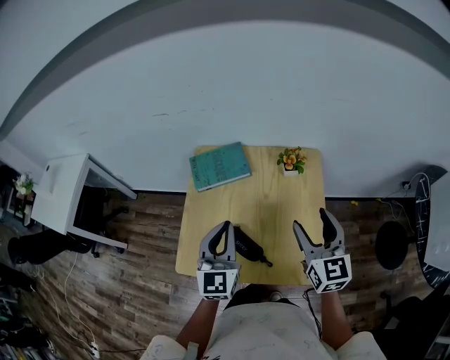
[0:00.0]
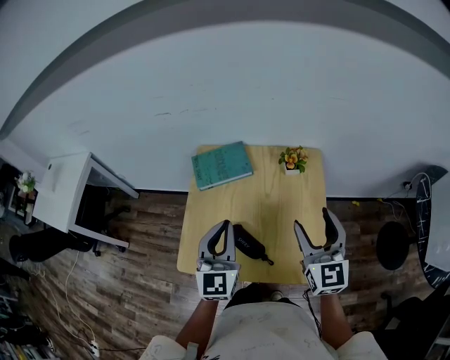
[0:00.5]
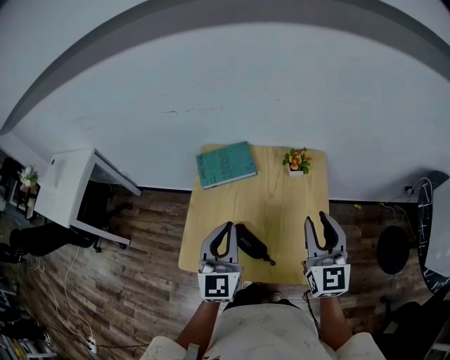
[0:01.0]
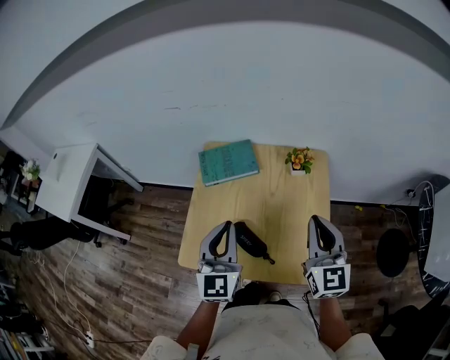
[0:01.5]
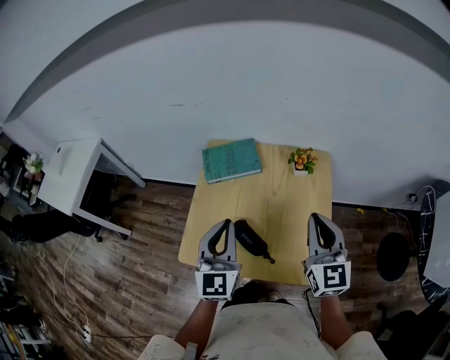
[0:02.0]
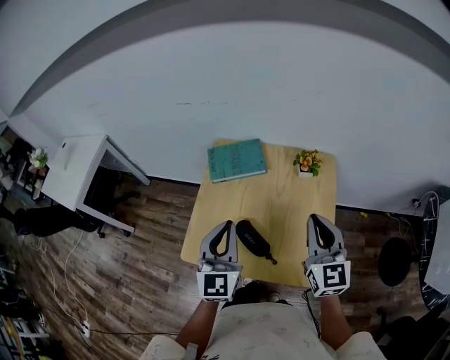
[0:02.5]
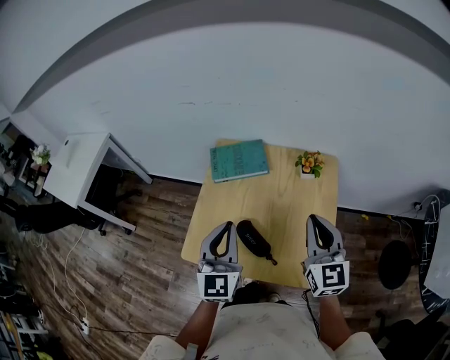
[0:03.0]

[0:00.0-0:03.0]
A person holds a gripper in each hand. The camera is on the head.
0:00.0 to 0:01.5: The right gripper closes its fingers.
0:01.5 to 0:03.0: The grippers move only a little.

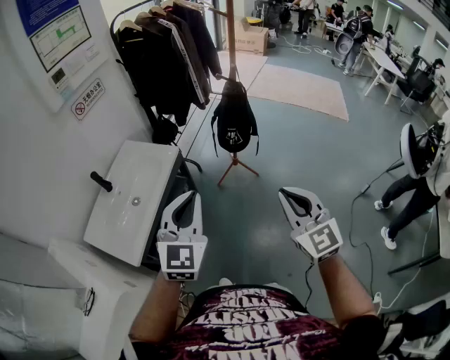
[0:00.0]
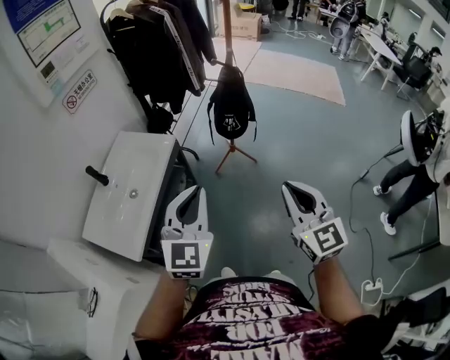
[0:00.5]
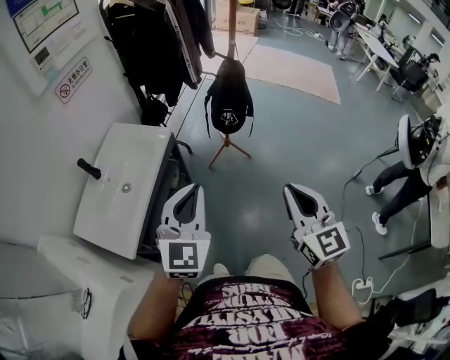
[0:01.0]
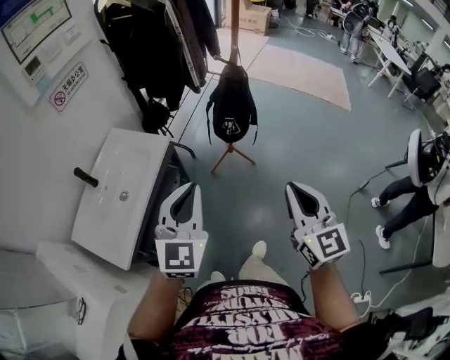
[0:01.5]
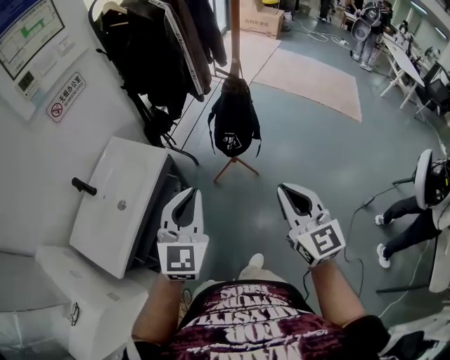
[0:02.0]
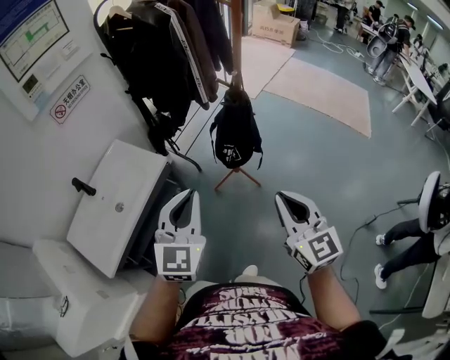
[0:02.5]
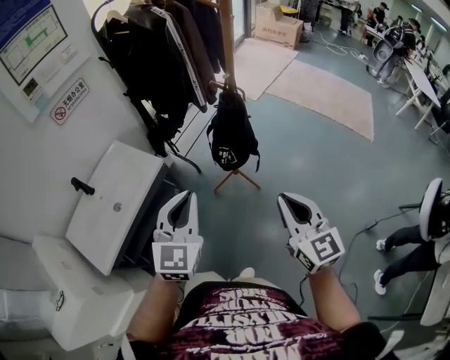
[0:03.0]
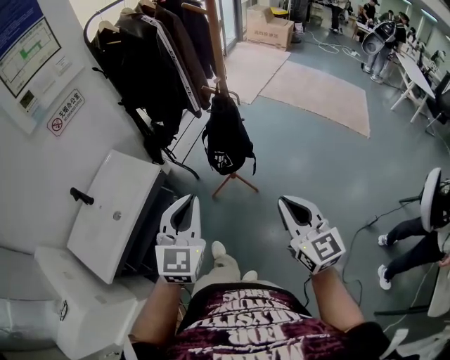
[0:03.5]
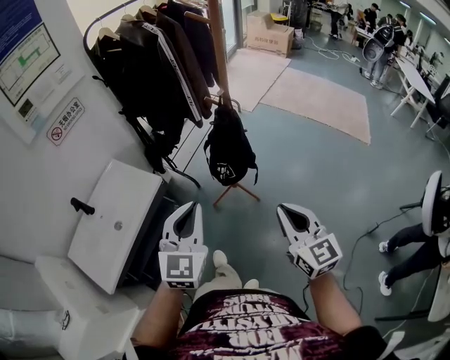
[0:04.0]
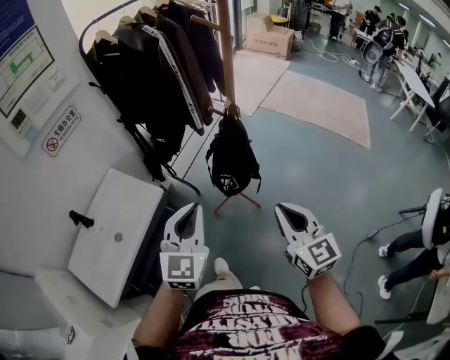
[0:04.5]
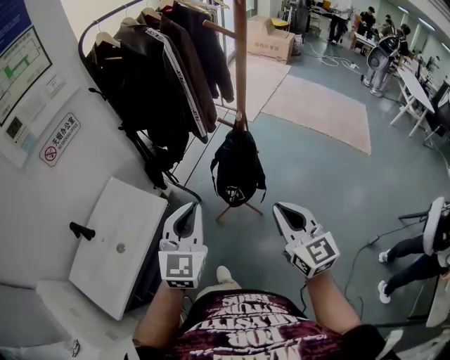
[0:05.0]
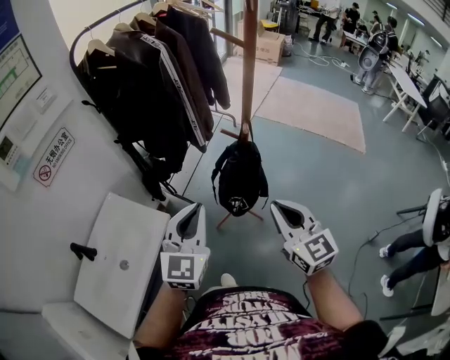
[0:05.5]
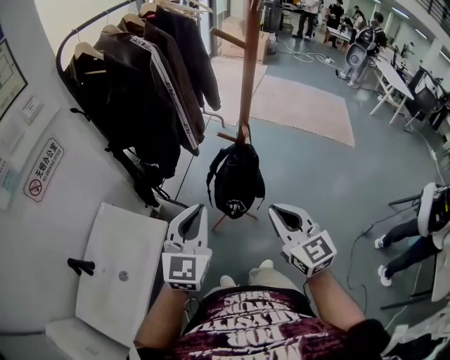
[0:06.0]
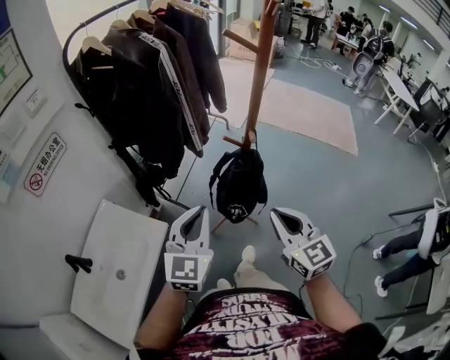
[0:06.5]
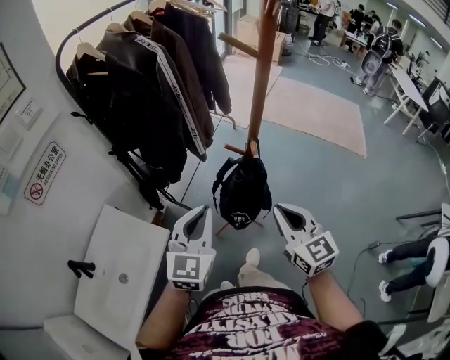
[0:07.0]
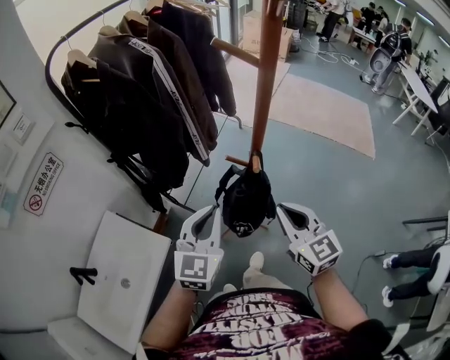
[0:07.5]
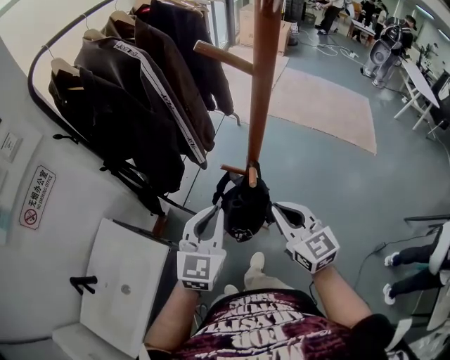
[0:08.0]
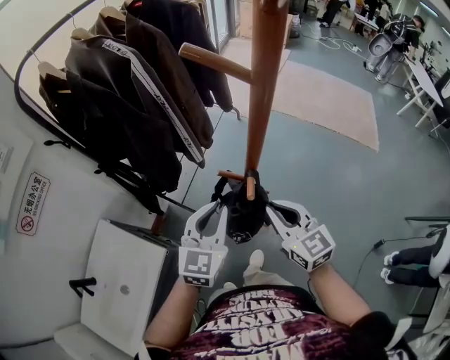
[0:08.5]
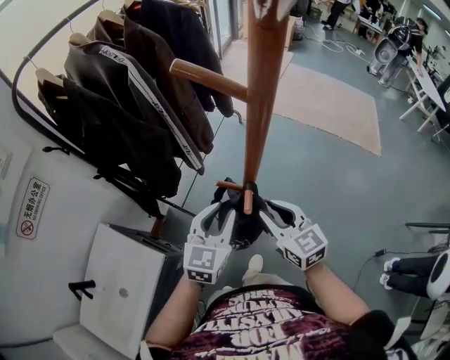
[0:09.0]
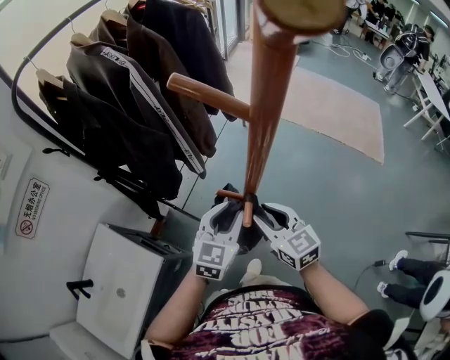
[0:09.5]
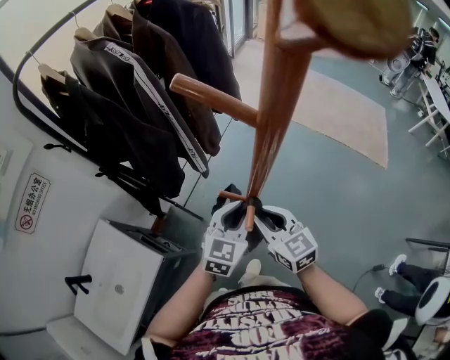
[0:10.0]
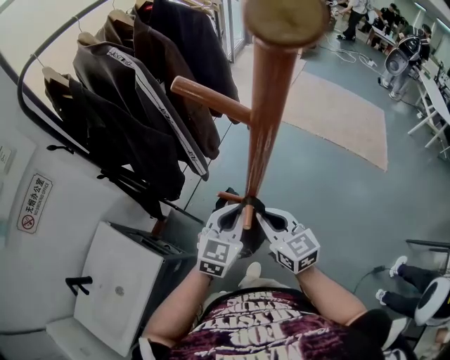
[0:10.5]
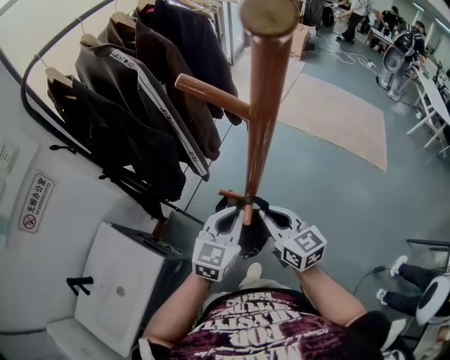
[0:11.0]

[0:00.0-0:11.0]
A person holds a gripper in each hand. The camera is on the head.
0:00.0 to 0:02.0: The right gripper heads forward, covering roughly 20 cm, while the left gripper shifts some 20 cm forward and to the right.
0:02.0 to 0:03.5: The grippers both shift to the right by some 10 cm.
0:03.5 to 0:05.5: The left gripper is displaced forward by roughly 20 cm. Meanwhile the right gripper heads forward and to the left, covering roughly 25 cm.
0:05.5 to 0:07.5: The two grippers go some 15 cm forward.
0:07.5 to 0:09.0: The left gripper travels forward, to the right and downward by about 15 cm, and opens up. The right gripper heads forward and downward, covering roughly 15 cm, and opens.
0:09.0 to 0:11.0: The right gripper closes up. The left gripper closes its fingers.

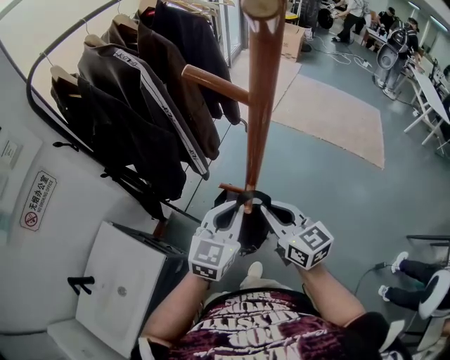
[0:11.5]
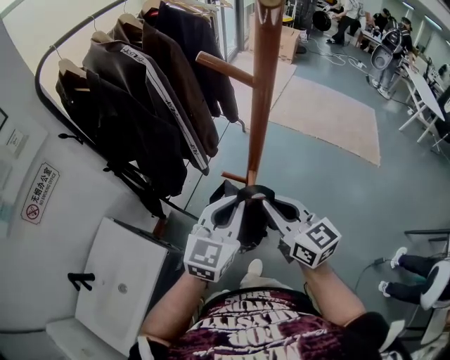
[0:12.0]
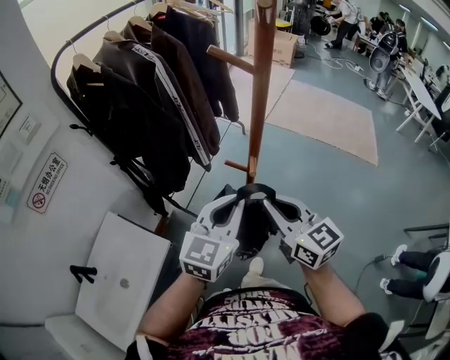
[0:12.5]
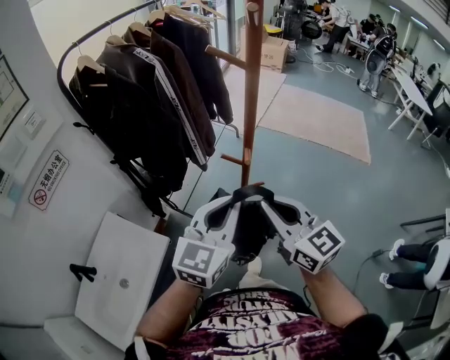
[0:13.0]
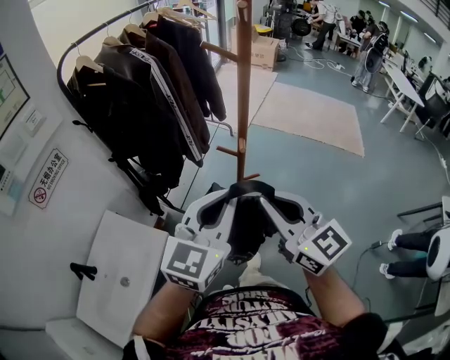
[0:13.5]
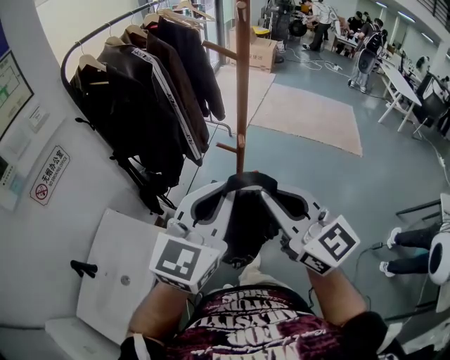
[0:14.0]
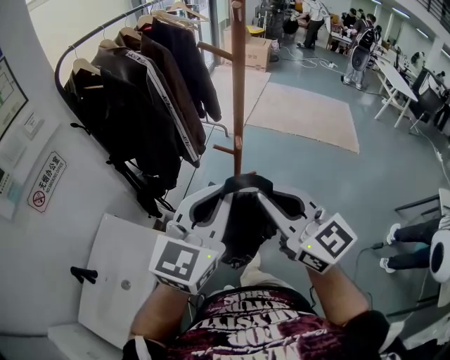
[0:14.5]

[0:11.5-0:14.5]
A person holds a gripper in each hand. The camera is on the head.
0:11.5 to 0:13.0: The two grippers go approximately 20 cm backward and upward.
0:13.0 to 0:14.5: Both grippers move upward and backward, approximately 10 cm.

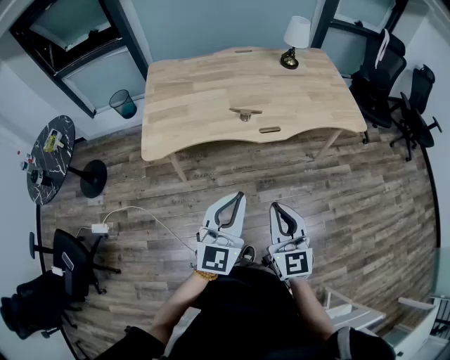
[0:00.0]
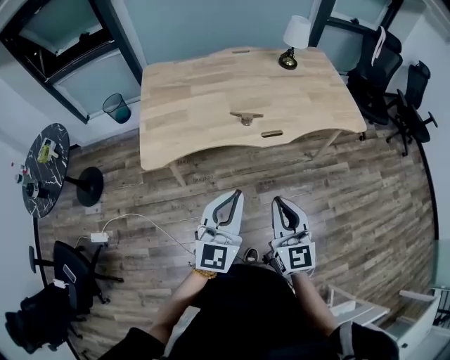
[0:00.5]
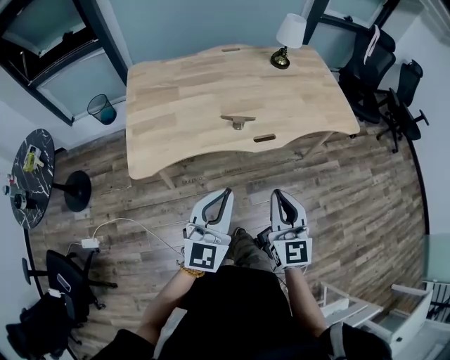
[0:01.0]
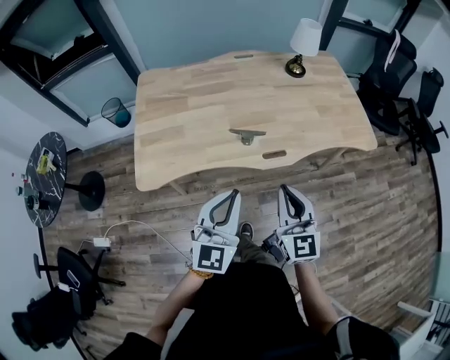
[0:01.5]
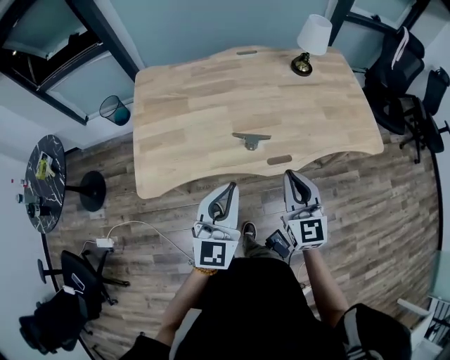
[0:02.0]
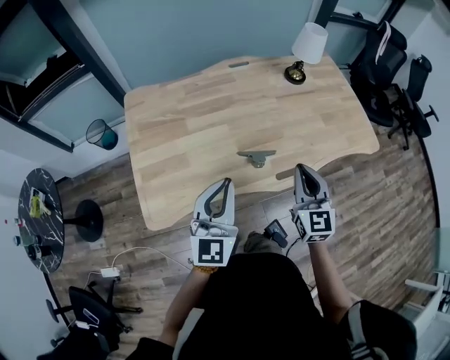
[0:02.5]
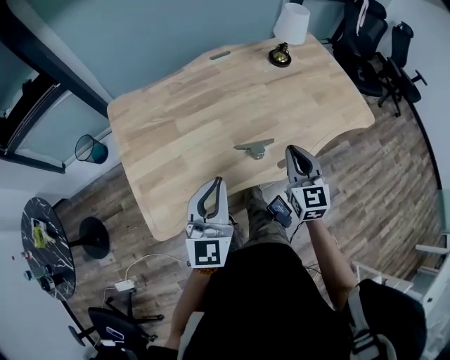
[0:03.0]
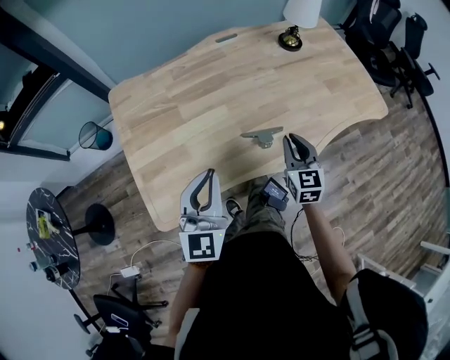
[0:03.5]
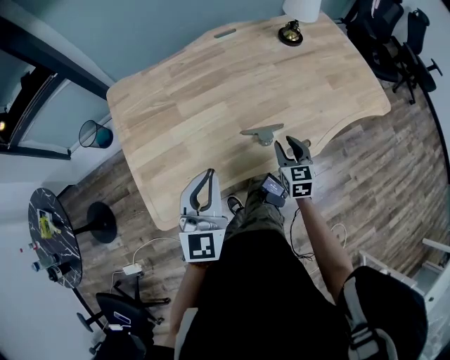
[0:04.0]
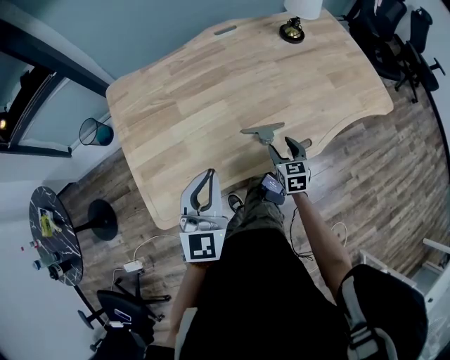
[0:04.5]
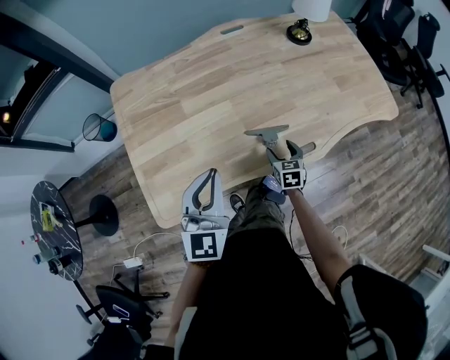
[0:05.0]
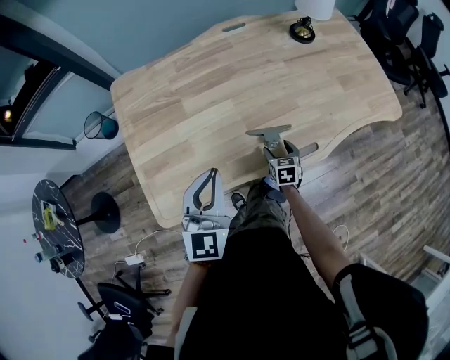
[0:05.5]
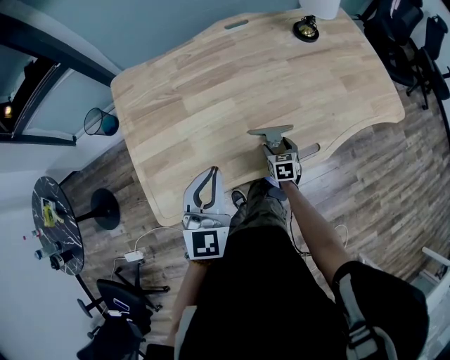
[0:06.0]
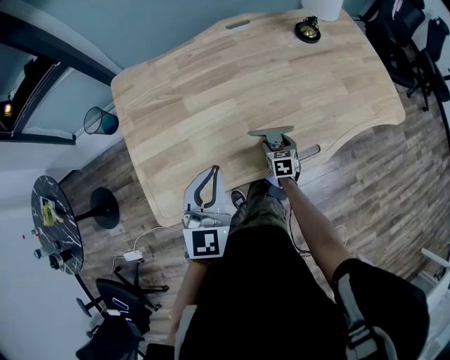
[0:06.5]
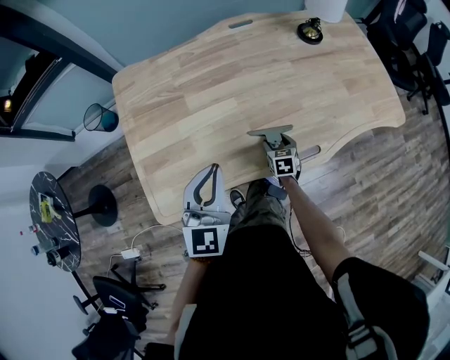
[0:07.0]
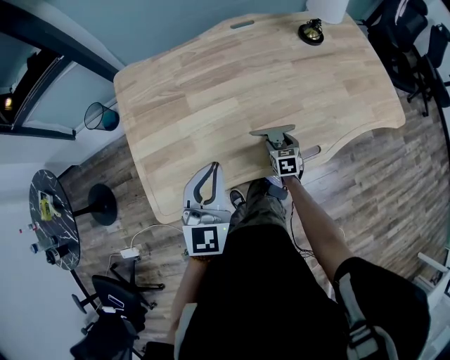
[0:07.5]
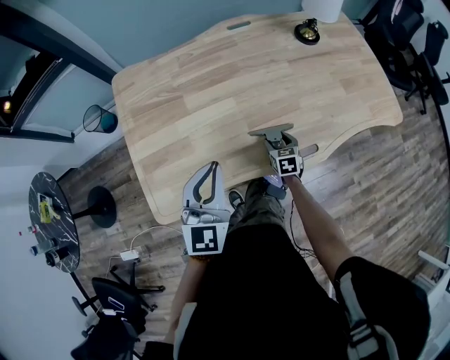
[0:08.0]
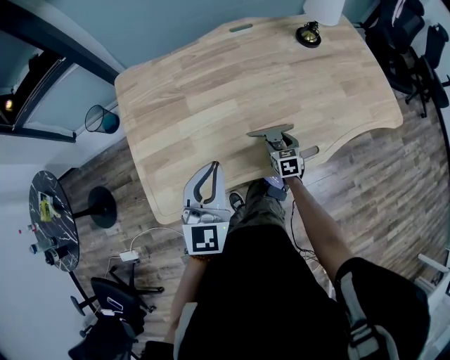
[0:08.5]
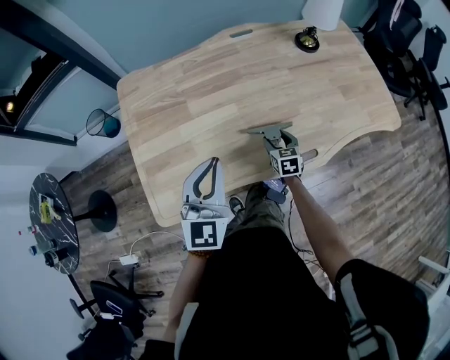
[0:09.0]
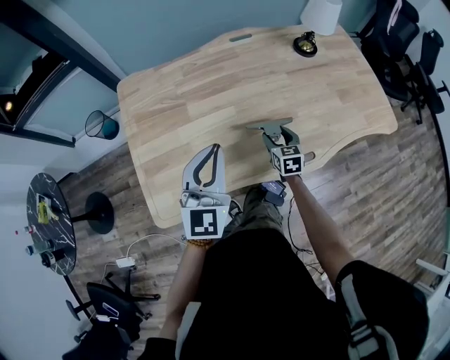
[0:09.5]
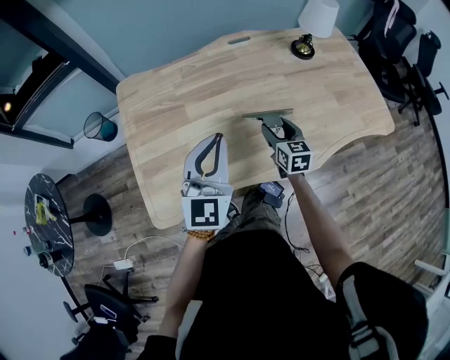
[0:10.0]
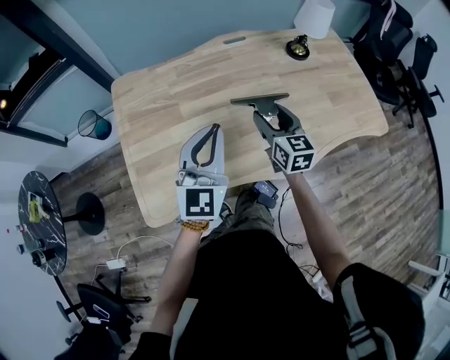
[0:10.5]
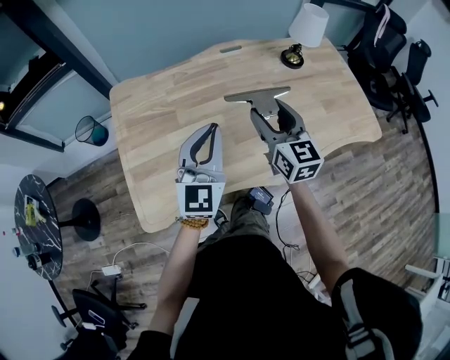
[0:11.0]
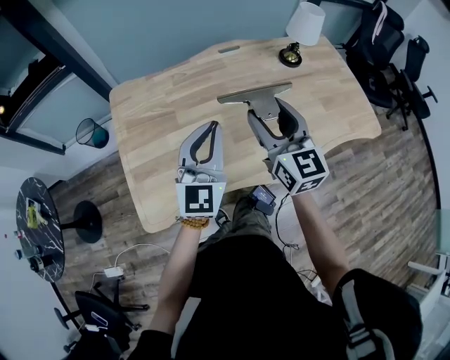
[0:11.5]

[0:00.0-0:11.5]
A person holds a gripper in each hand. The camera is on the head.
0:00.0 to 0:02.0: The two grippers go approximately 30 cm forward.
0:02.0 to 0:04.0: The right gripper is displaced downward and forward by about 25 cm, turns by approximately 30 degrees, and opens. The left gripper is displaced to the left and forward by about 20 cm.
0:04.0 to 0:06.0: The right gripper goes roughly 15 cm downward, and opens.
0:06.0 to 0:07.5: The grippers move only a little.
0:07.5 to 0:09.5: The right gripper is displaced upward by some 10 cm.
0:09.5 to 0:11.5: The right gripper goes roughly 30 cm upward, and angles its fingers upward, by some 30 degrees; the left gripper ends up about 5 cm from where it was.
